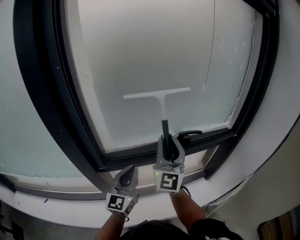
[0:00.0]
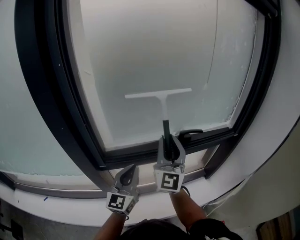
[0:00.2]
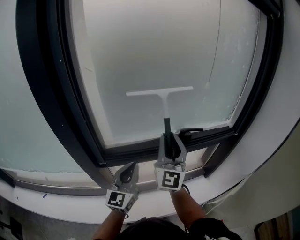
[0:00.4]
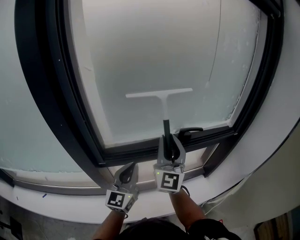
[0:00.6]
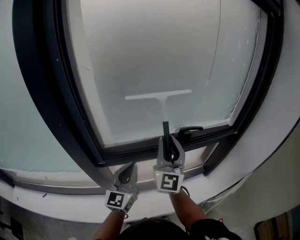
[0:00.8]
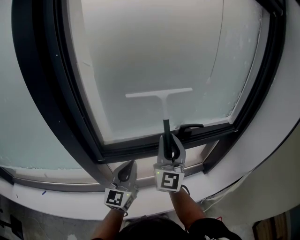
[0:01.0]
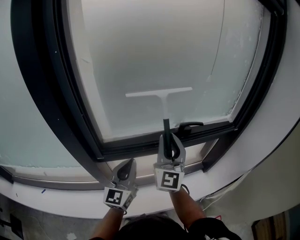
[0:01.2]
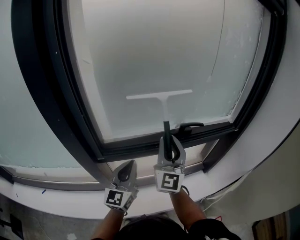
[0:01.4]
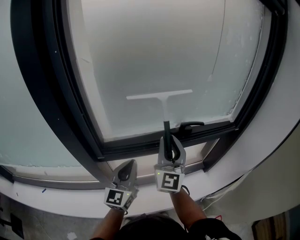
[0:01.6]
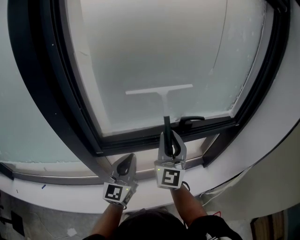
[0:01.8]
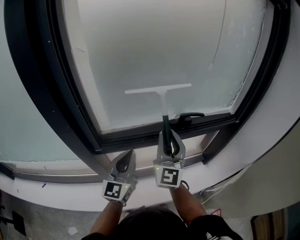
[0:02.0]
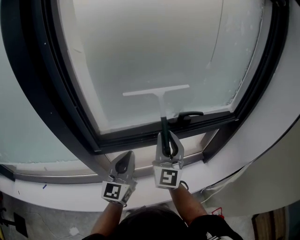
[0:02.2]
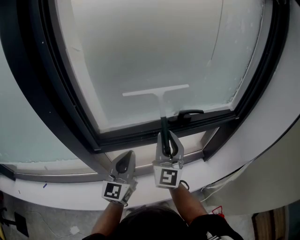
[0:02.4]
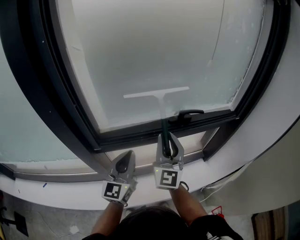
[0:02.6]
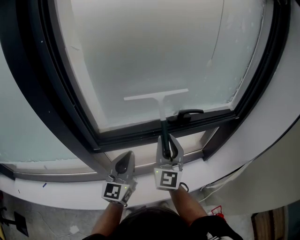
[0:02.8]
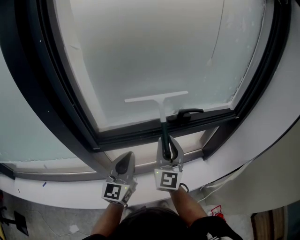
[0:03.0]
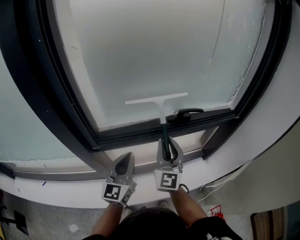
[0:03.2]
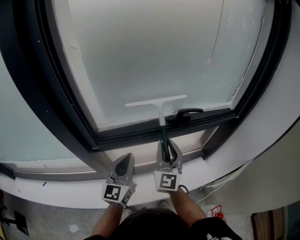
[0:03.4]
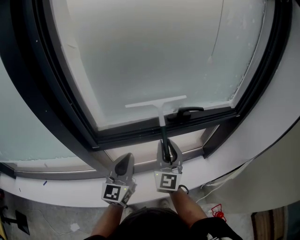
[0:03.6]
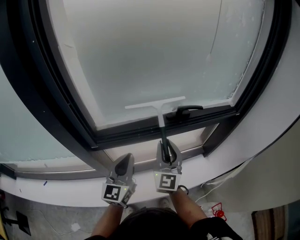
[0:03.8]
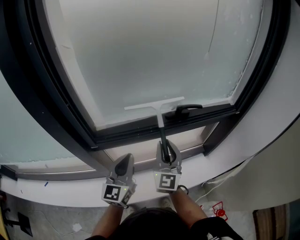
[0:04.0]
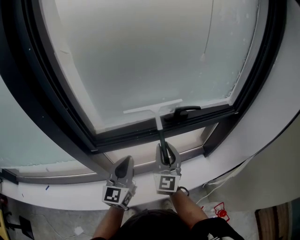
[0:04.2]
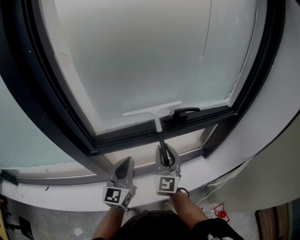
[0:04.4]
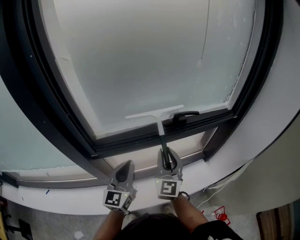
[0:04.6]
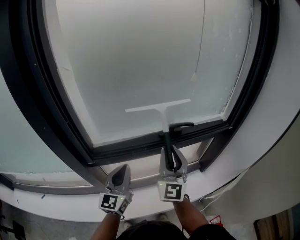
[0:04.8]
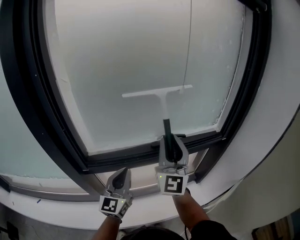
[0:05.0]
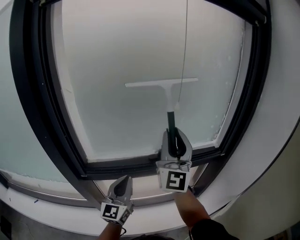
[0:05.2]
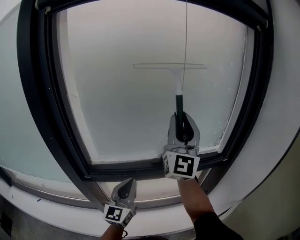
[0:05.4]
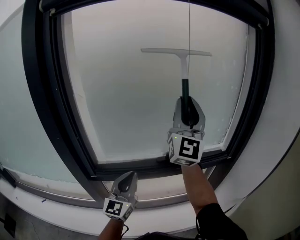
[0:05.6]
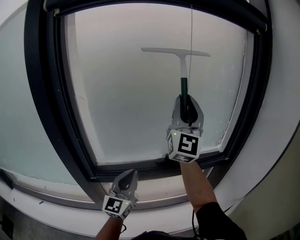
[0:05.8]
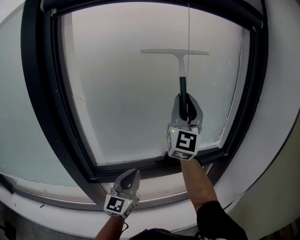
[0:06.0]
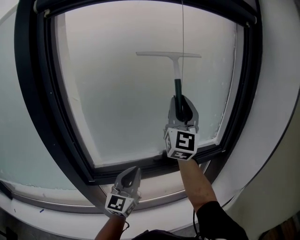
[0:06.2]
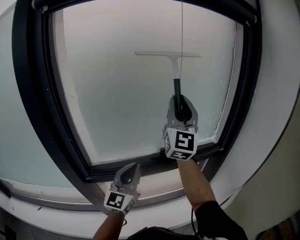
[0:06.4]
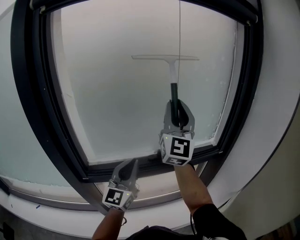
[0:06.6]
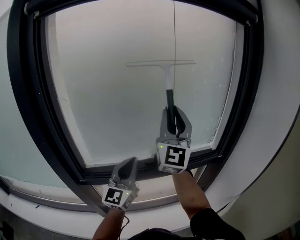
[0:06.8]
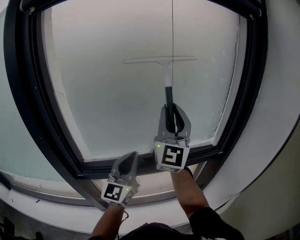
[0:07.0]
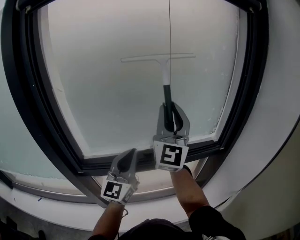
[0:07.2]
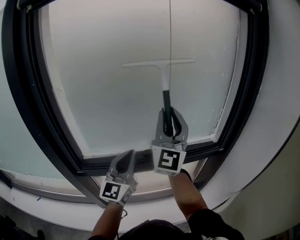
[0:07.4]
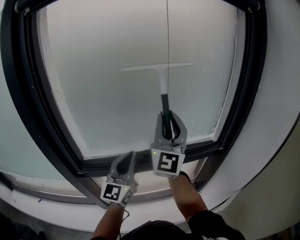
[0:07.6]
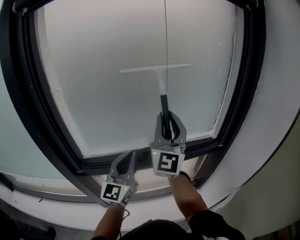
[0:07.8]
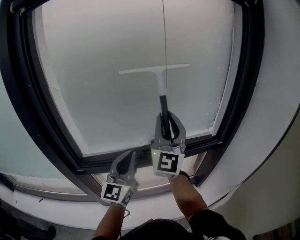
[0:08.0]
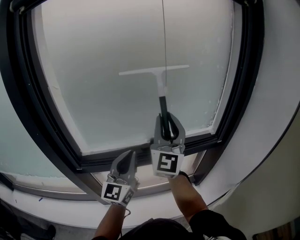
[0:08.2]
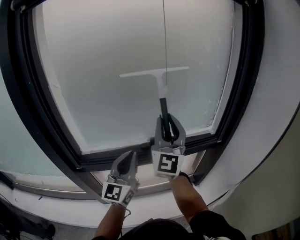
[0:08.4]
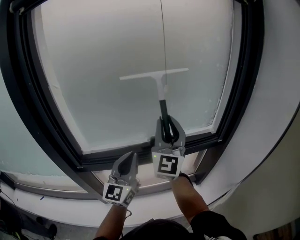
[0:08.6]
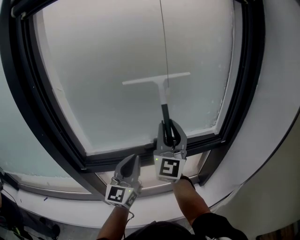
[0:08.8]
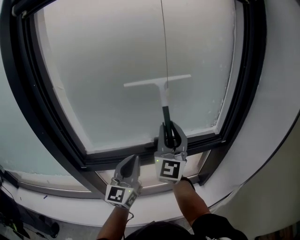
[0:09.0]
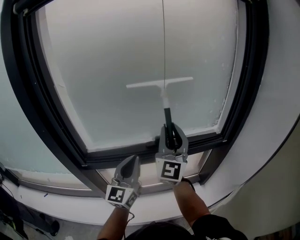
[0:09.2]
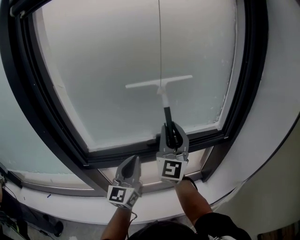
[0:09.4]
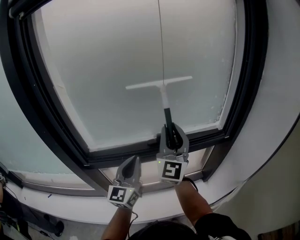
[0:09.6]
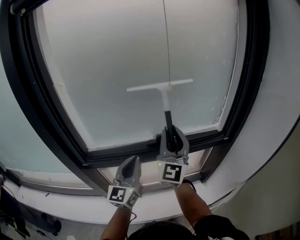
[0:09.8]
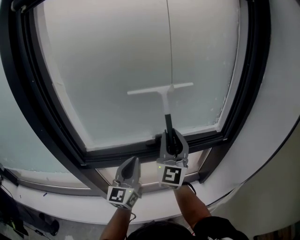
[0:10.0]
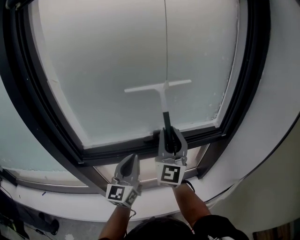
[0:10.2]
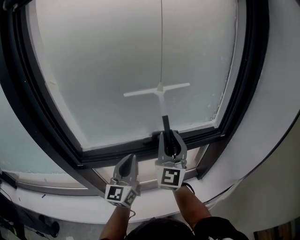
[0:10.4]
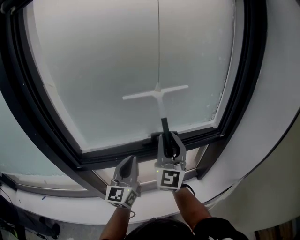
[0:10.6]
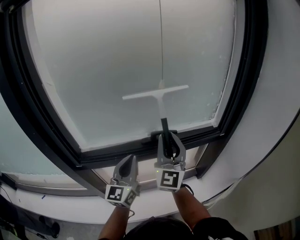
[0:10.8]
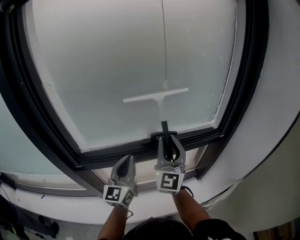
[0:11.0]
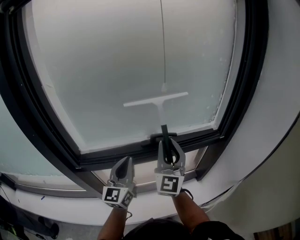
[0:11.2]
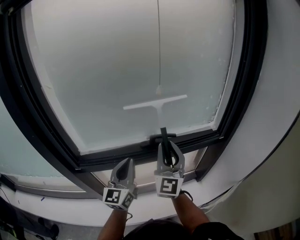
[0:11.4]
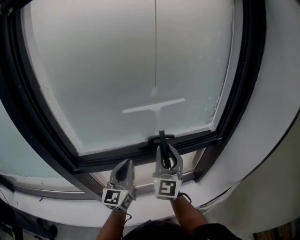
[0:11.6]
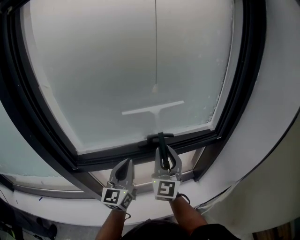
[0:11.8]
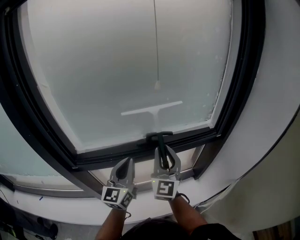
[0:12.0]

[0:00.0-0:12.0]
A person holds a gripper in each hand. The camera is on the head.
0:00.0 to 0:01.6: The grippers move only a little.
0:01.6 to 0:03.0: The right gripper shifts approximately 5 cm downward.
0:03.0 to 0:04.4: The right gripper heads downward, covering some 5 cm.
0:04.4 to 0:06.0: The right gripper travels upward by some 35 cm, and tips its fingers upward by approximately 30 degrees; the left gripper goes roughly 10 cm upward and to the right.
0:06.0 to 0:07.6: The right gripper travels downward by some 10 cm; the left gripper moves approximately 5 cm.
0:07.6 to 0:09.0: The right gripper is displaced downward by some 5 cm.
0:09.0 to 0:10.4: The right gripper heads downward, covering roughly 5 cm.
0:10.4 to 0:12.0: The right gripper moves downward, roughly 5 cm.

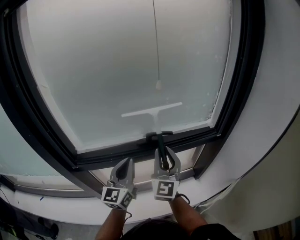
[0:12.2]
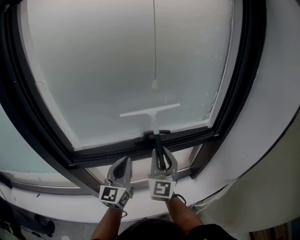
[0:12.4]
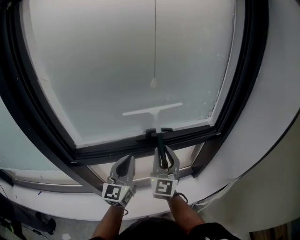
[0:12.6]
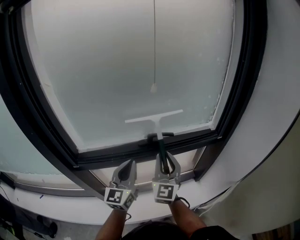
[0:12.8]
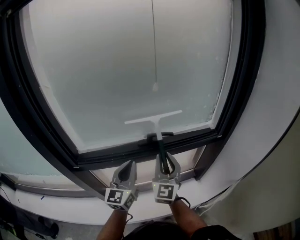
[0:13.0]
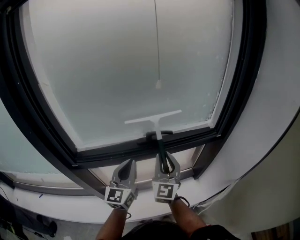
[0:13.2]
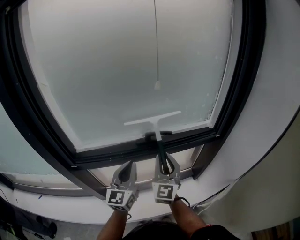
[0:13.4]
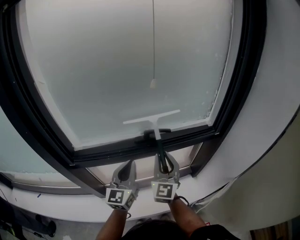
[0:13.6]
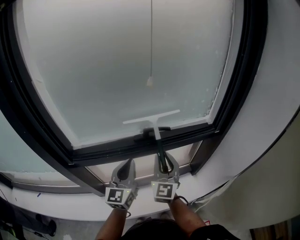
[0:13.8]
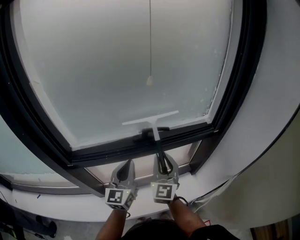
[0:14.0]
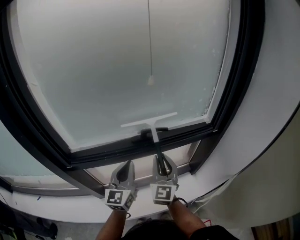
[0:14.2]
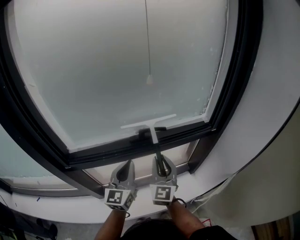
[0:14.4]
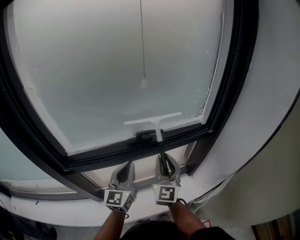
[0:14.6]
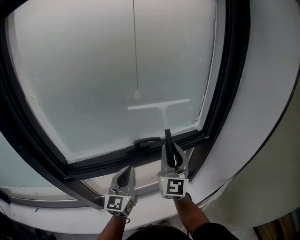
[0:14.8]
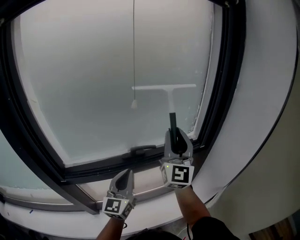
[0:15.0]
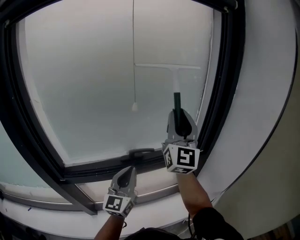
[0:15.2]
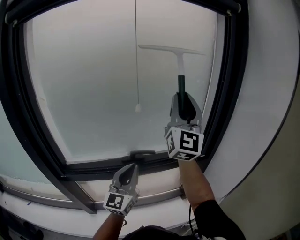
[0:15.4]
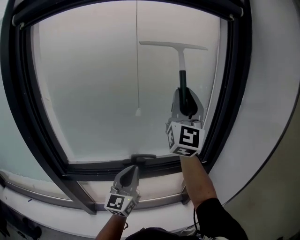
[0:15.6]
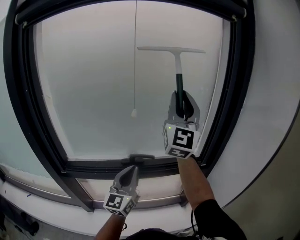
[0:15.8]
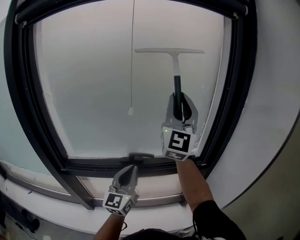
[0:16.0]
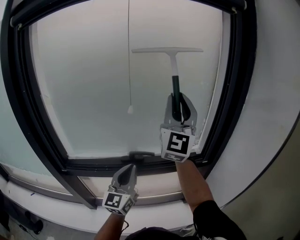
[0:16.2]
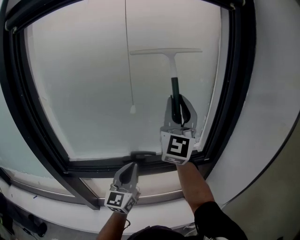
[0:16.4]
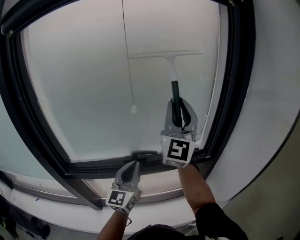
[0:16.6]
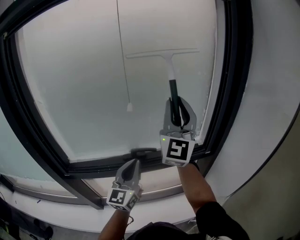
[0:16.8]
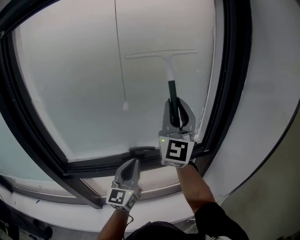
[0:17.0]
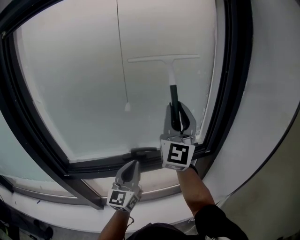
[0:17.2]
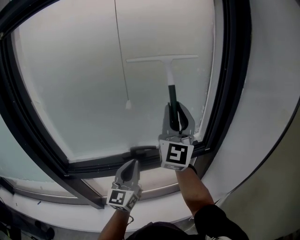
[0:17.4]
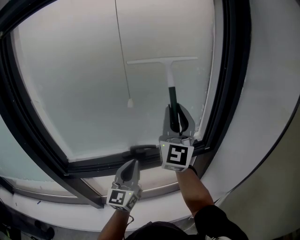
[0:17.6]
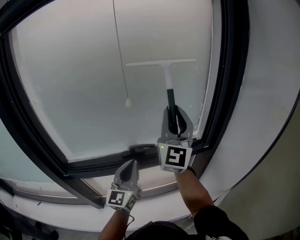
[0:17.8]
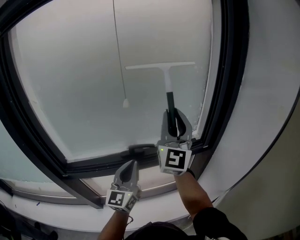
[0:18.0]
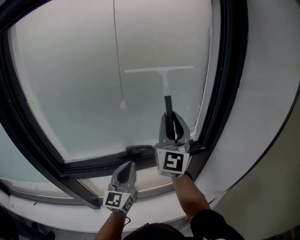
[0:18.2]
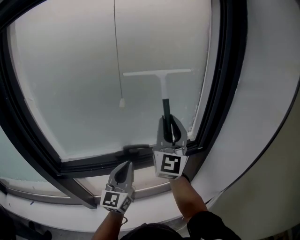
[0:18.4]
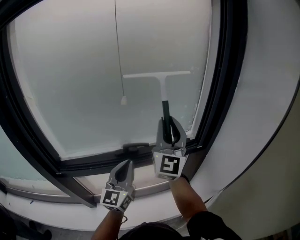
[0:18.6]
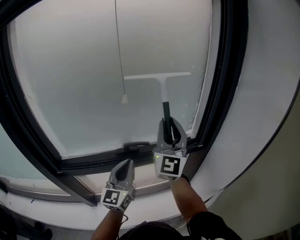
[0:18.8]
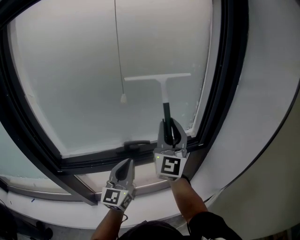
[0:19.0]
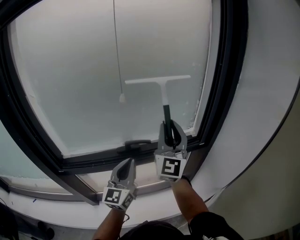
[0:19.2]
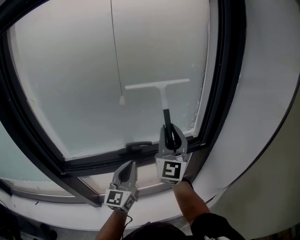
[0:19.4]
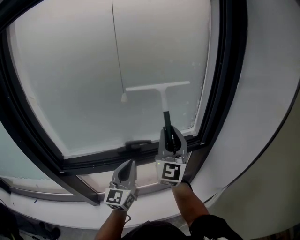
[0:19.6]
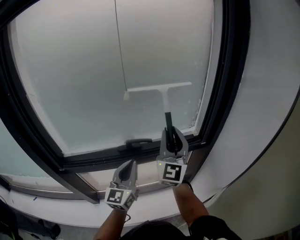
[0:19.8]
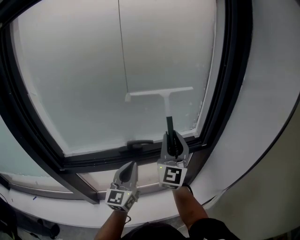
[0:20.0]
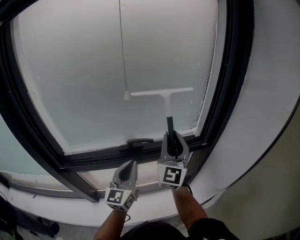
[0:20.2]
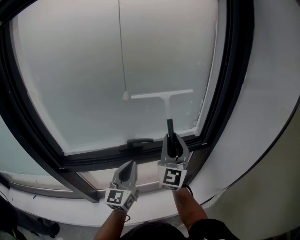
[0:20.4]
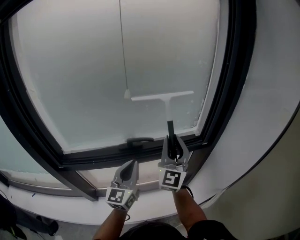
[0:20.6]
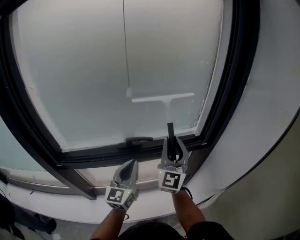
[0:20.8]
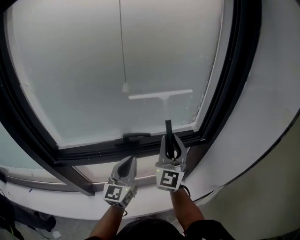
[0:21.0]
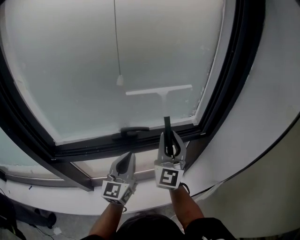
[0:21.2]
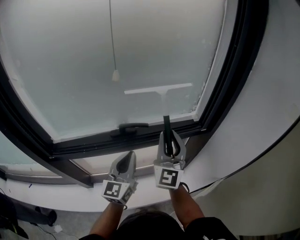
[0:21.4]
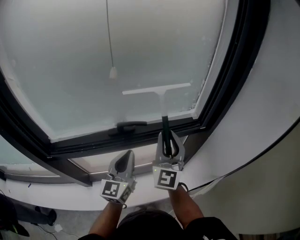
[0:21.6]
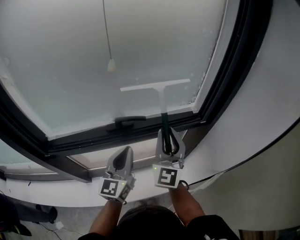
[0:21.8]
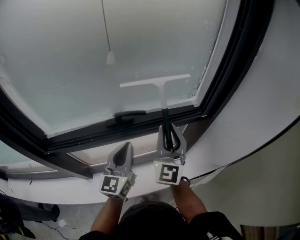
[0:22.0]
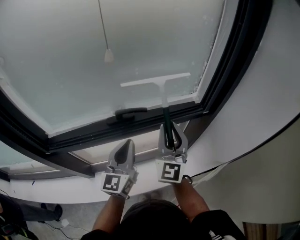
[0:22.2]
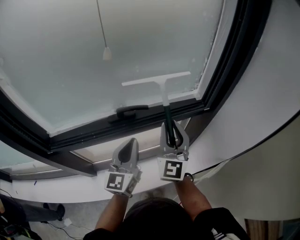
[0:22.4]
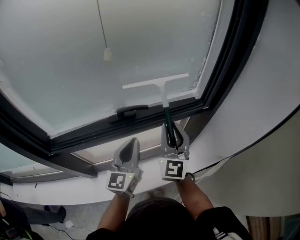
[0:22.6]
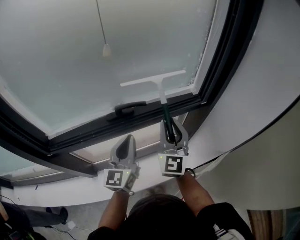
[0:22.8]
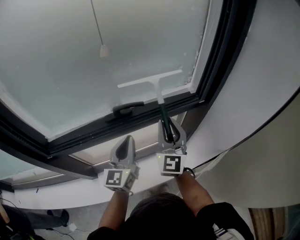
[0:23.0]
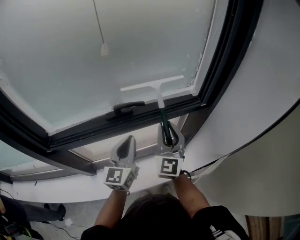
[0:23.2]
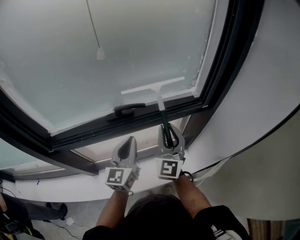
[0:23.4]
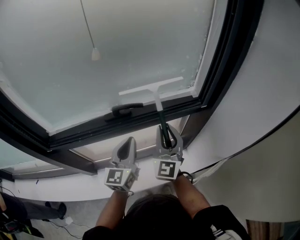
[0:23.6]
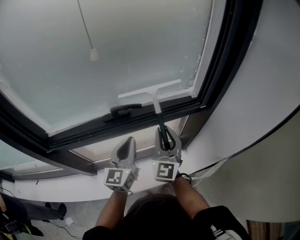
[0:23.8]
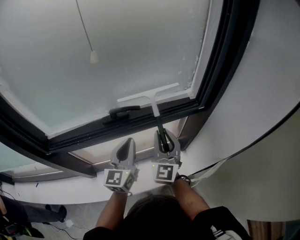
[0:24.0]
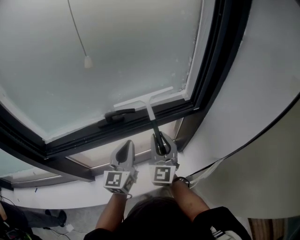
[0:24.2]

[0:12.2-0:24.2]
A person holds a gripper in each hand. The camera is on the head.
0:12.2 to 0:13.8: The right gripper goes roughly 5 cm downward.
0:13.8 to 0:15.2: The left gripper goes roughly 10 cm to the right and upward, while the right gripper heads upward, covering some 25 cm, and swivels approximately 30 degrees.
0:16.6 to 0:18.2: The right gripper goes some 5 cm downward.
0:18.2 to 0:19.8: The right gripper shifts roughly 10 cm downward.
0:19.8 to 0:21.2: The right gripper heads downward, covering approximately 5 cm.
0:21.2 to 0:22.6: The right gripper moves downward, about 5 cm.
0:22.6 to 0:24.2: The right gripper heads downward, covering some 5 cm.
